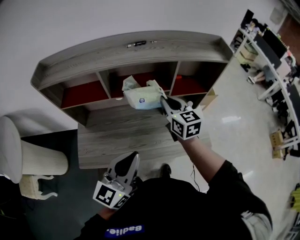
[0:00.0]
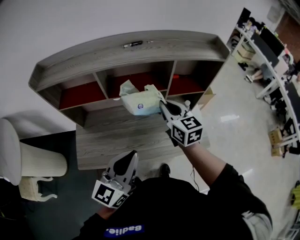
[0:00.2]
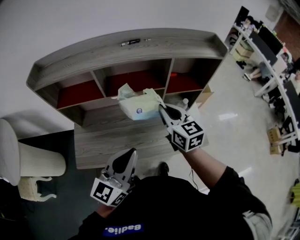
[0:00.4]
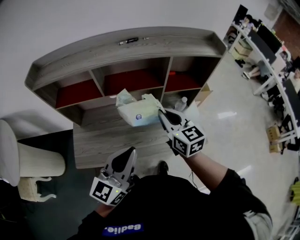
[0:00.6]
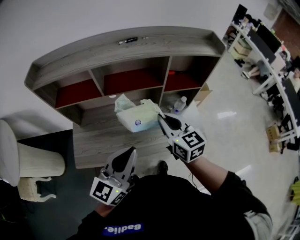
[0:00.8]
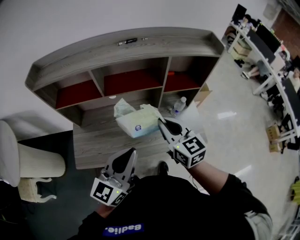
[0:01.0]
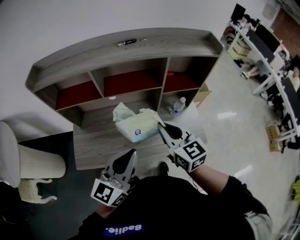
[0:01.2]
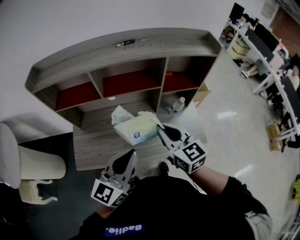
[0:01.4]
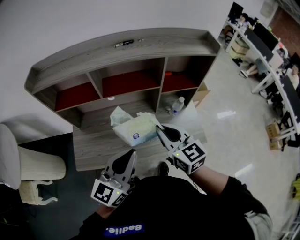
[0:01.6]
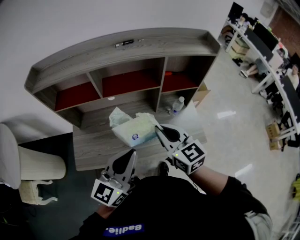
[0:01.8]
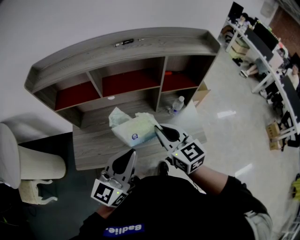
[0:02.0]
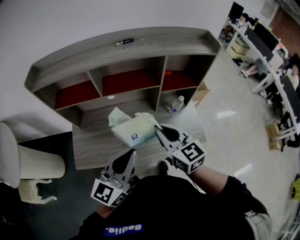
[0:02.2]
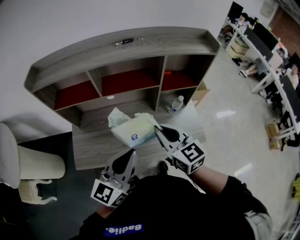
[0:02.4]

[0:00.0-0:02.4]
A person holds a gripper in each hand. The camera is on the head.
0.0 to 1.2 s: The right gripper is displaced backward by about 15 cm.
1.2 to 2.4 s: The grippers make only small movements.

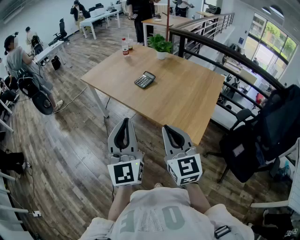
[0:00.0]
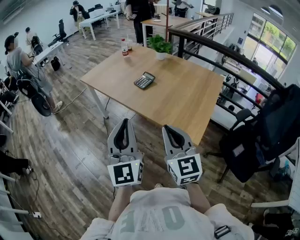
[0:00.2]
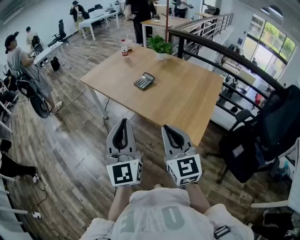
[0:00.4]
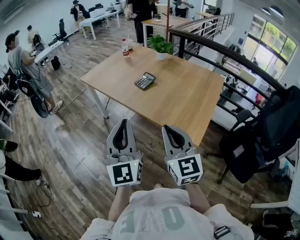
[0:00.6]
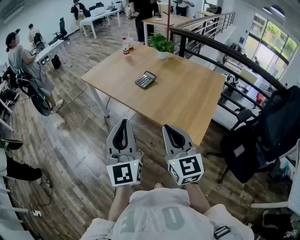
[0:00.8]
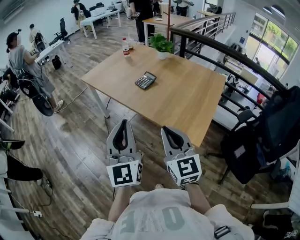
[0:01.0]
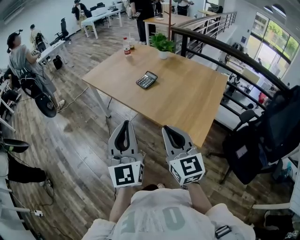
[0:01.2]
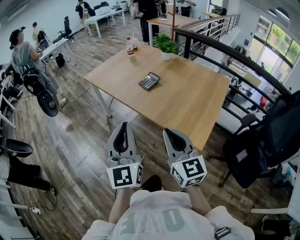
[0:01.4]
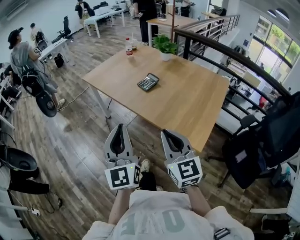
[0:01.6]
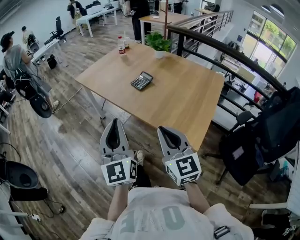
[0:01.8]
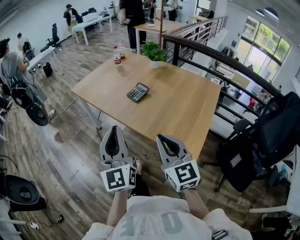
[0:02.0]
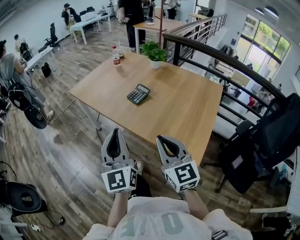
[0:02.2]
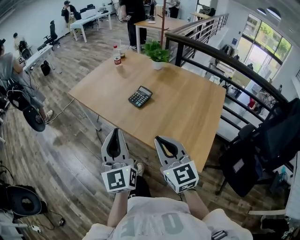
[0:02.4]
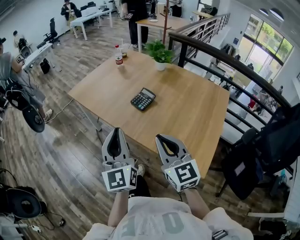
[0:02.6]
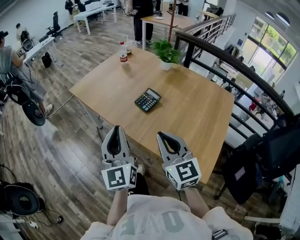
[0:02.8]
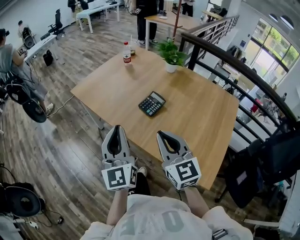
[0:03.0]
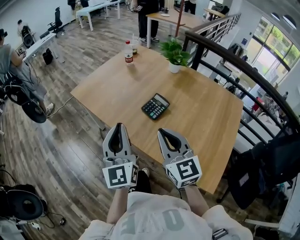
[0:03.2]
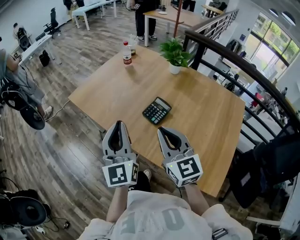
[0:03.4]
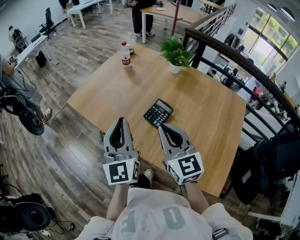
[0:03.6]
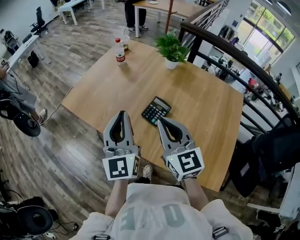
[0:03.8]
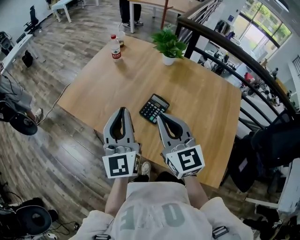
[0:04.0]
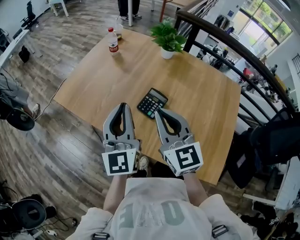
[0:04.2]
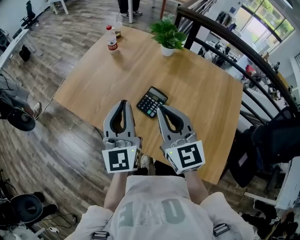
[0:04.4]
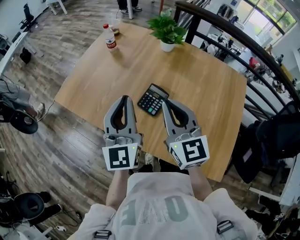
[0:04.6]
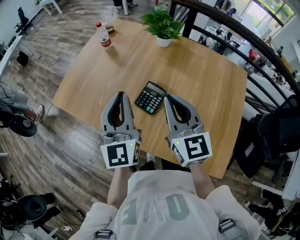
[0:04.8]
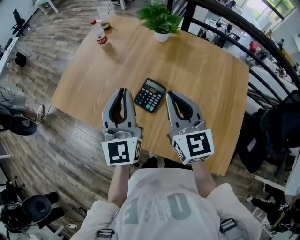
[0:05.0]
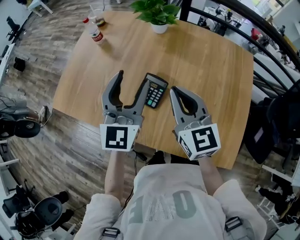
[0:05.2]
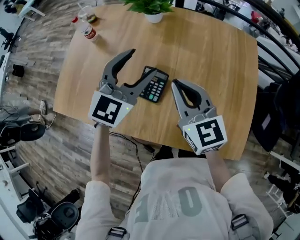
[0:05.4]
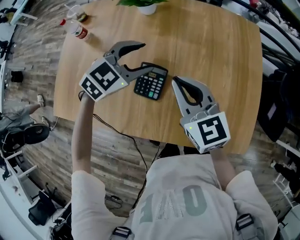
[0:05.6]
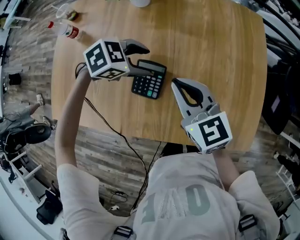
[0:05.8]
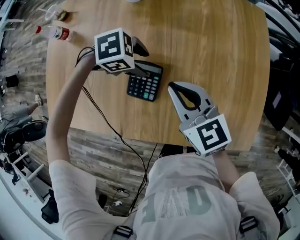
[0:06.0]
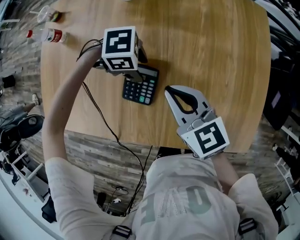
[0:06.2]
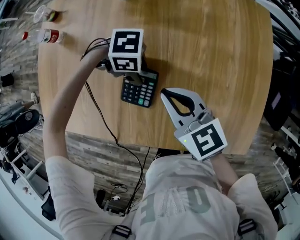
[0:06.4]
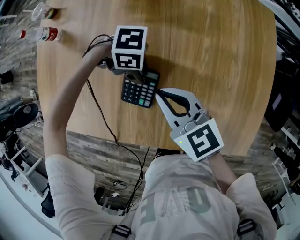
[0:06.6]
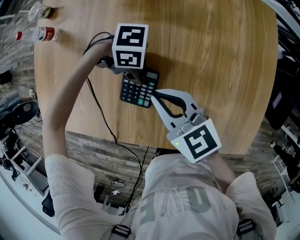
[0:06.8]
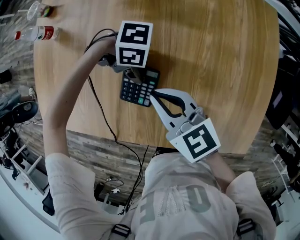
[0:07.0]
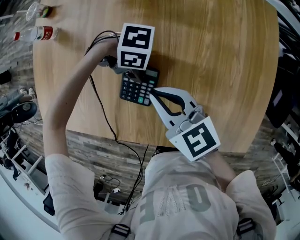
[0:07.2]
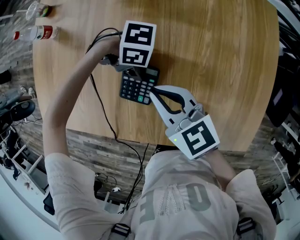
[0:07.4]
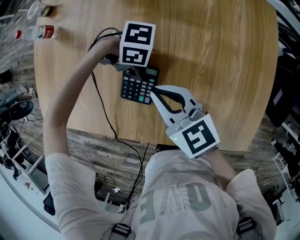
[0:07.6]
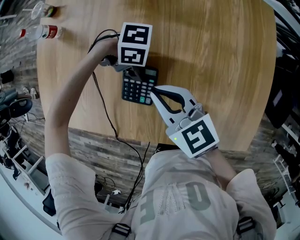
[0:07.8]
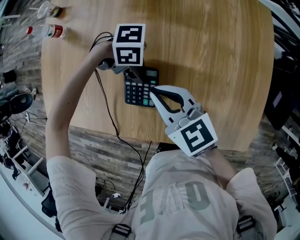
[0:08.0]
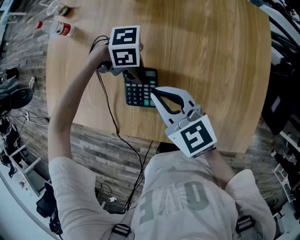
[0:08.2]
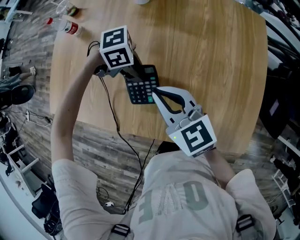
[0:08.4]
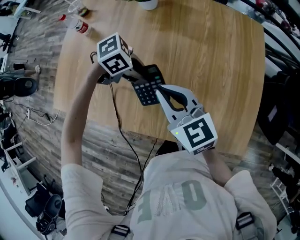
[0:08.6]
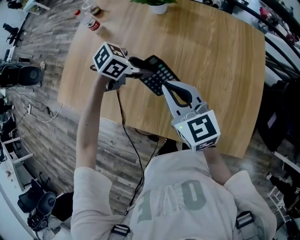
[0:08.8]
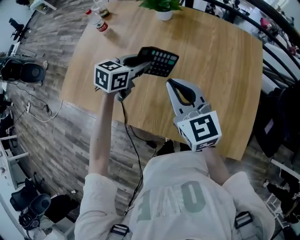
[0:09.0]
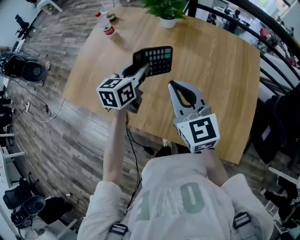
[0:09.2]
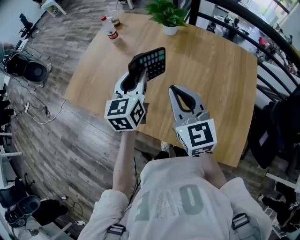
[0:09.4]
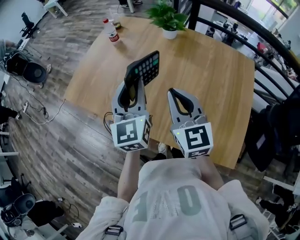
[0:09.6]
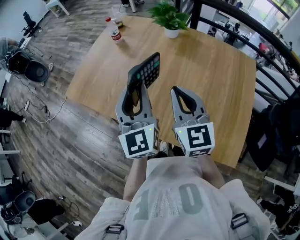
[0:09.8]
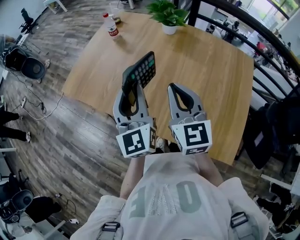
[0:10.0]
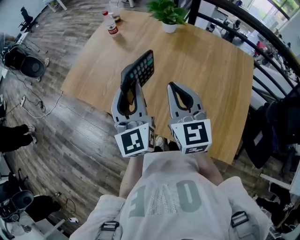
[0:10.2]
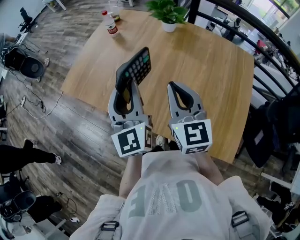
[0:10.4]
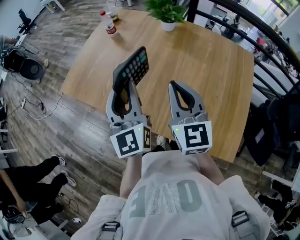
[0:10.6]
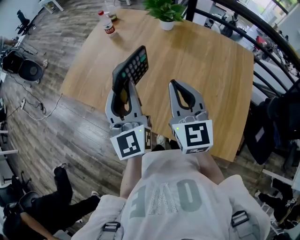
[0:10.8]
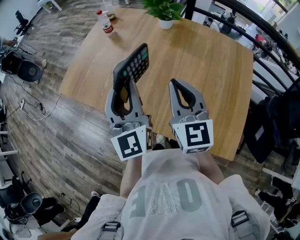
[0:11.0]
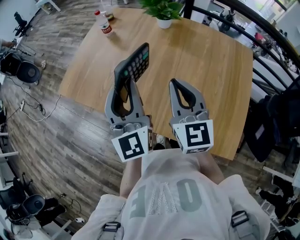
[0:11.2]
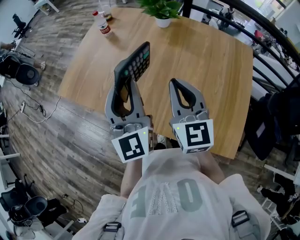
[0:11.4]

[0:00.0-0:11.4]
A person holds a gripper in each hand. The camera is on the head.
0.0 to 1.4 s: The grippers make only small movements.
1.4 to 2.8 s: Both grippers travel together forward, some 20 cm.
2.8 to 4.2 s: The grippers both shift forward by some 20 cm.
4.2 to 5.6 s: The left gripper changes place by about 25 cm, tilts its fingers some 50 degrees downward, and opens up. The right gripper changes place by some 15 cm.
5.6 to 7.2 s: The right gripper goes some 10 cm downward, and turns by about 20 degrees; the left gripper shifts roughly 20 cm downward, changes its angle by approximately 80 degrees, and closes its fingers.
7.2 to 8.6 s: Both grippers move upward, roughly 10 cm. The left gripper rotates some 40 degrees.
8.6 to 10.0 s: The left gripper is displaced upward by about 20 cm, and tilts its fingers some 50 degrees upward. The right gripper moves upward, roughly 10 cm.
10.0 to 11.4 s: The grippers move only a little.

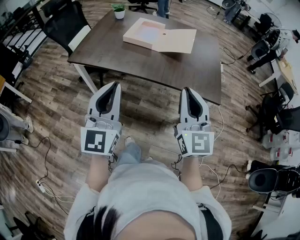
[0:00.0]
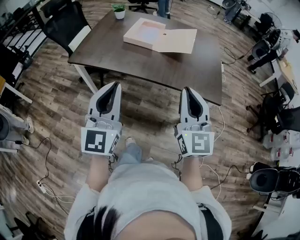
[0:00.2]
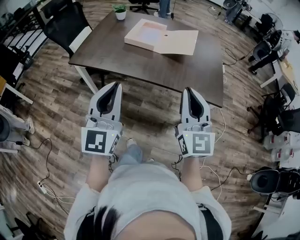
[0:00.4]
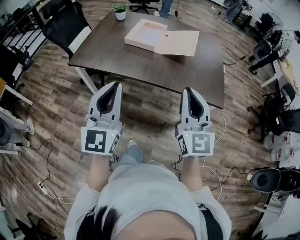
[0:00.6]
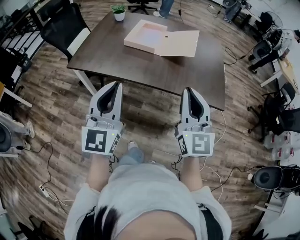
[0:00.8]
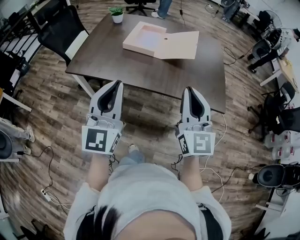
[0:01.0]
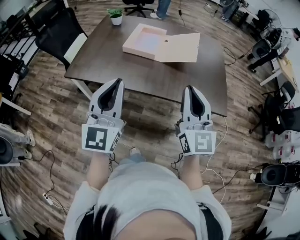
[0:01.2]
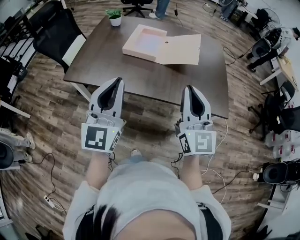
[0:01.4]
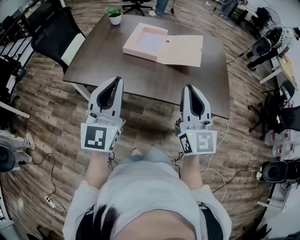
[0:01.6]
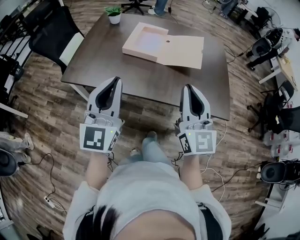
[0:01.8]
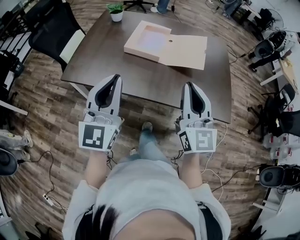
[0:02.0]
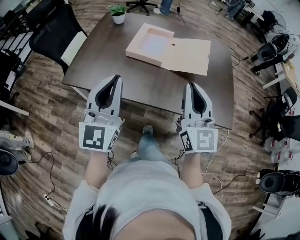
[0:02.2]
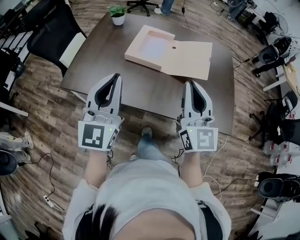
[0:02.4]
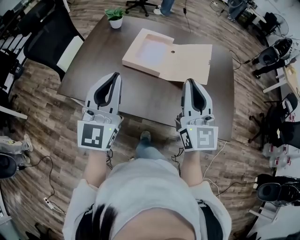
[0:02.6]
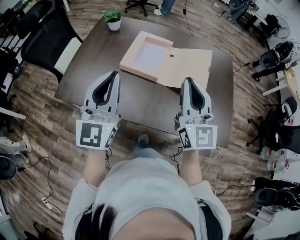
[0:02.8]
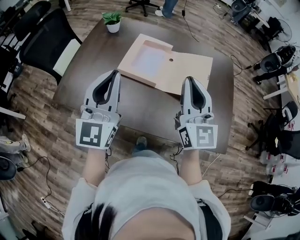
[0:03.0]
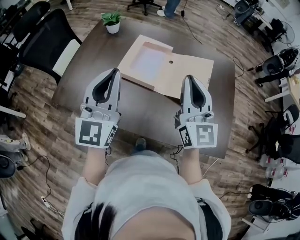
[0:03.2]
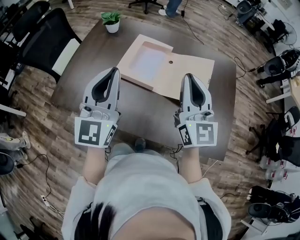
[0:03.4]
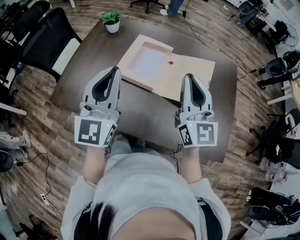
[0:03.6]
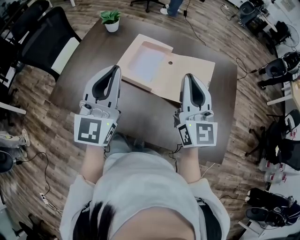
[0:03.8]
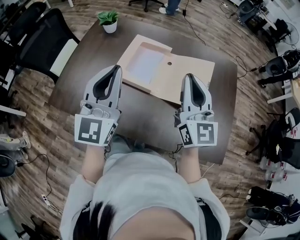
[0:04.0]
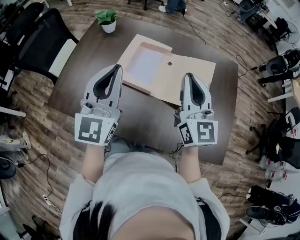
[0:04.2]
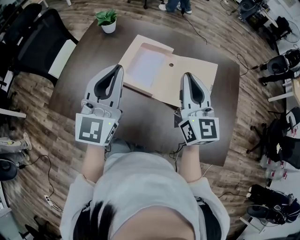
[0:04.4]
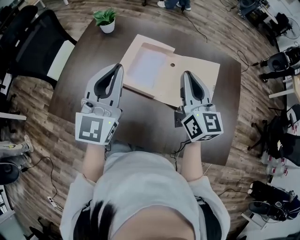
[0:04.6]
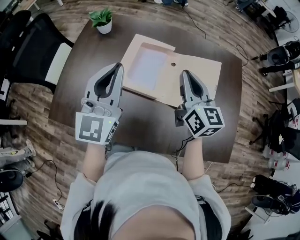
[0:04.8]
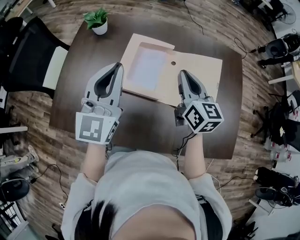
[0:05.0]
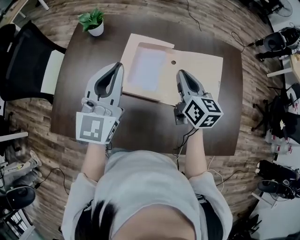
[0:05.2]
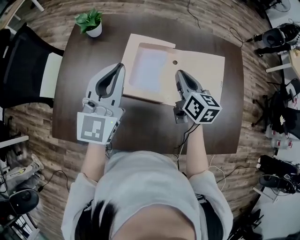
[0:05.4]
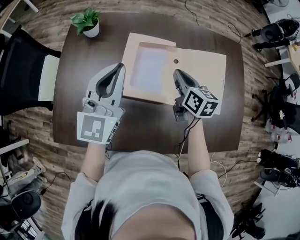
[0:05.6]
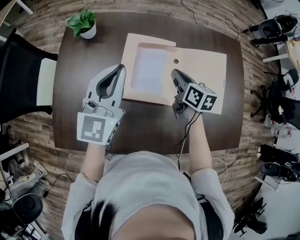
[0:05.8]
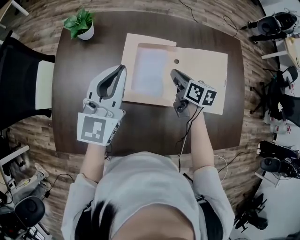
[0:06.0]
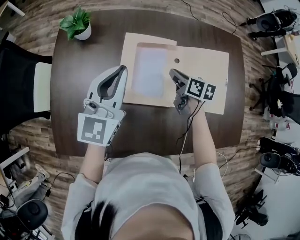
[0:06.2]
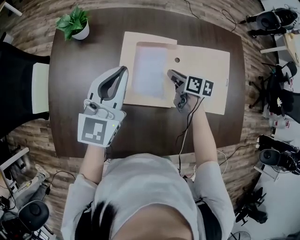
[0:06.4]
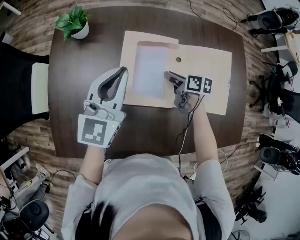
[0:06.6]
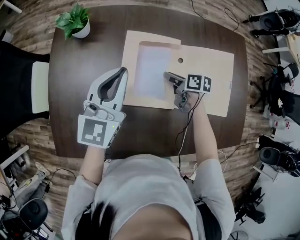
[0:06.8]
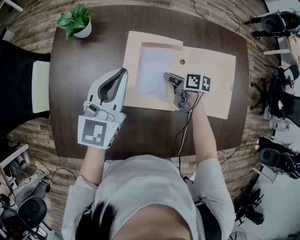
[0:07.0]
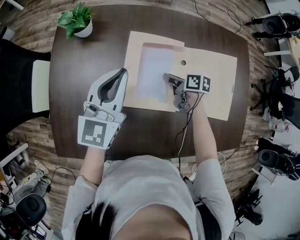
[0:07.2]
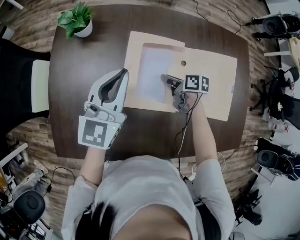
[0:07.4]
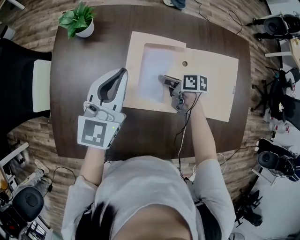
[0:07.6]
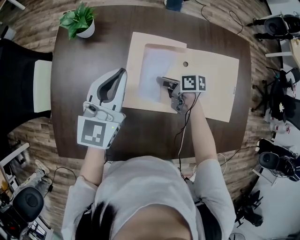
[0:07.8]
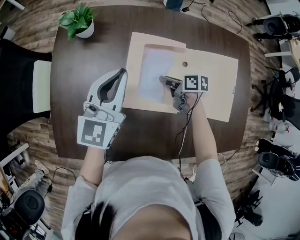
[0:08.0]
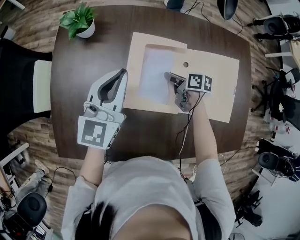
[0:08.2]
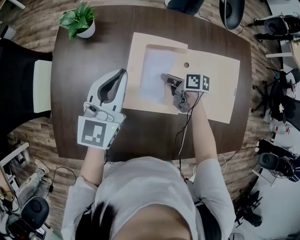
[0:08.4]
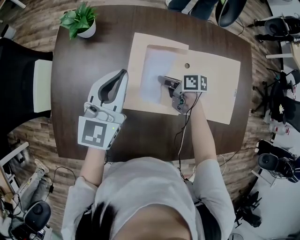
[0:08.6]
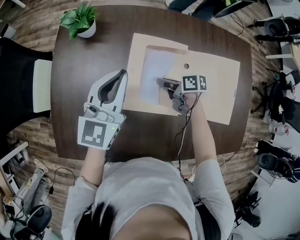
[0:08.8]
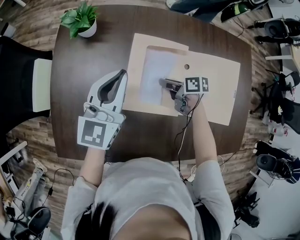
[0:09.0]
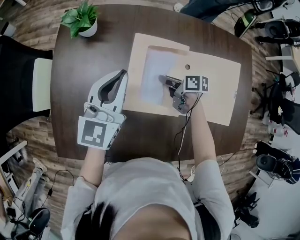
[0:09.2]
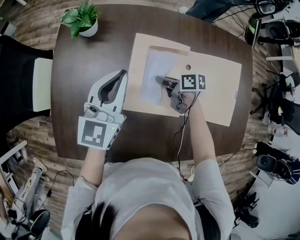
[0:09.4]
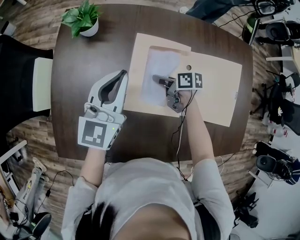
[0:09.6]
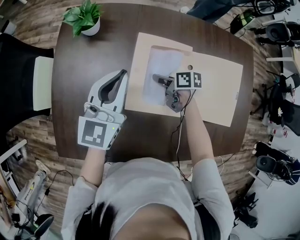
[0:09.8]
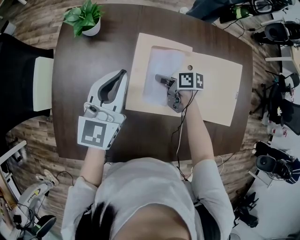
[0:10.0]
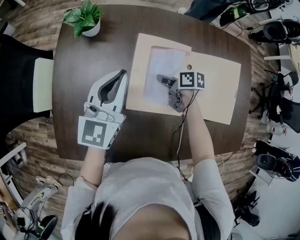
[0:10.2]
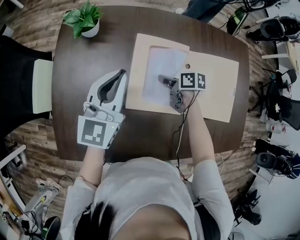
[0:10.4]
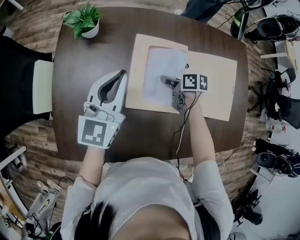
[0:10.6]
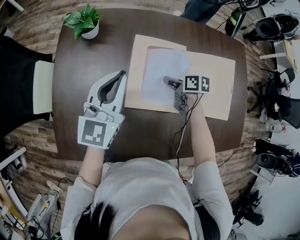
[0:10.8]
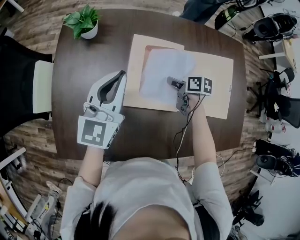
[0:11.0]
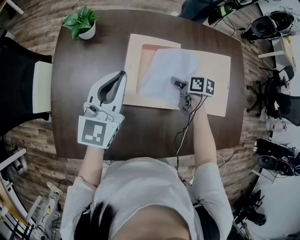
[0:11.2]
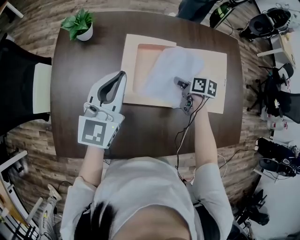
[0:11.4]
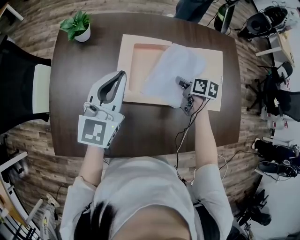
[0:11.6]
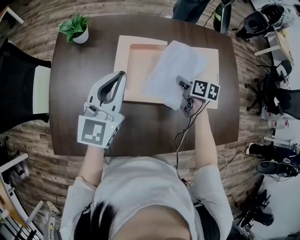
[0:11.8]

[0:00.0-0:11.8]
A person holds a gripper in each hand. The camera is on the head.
0.0 to 1.4 s: The two grippers go some 15 cm forward.
1.4 to 3.0 s: The two grippers go about 25 cm forward.
3.0 to 4.4 s: Both grippers travel together forward, approximately 10 cm.
4.4 to 6.0 s: The left gripper heads forward, downward and to the left, covering roughly 20 cm, and swivels about 20 degrees; the right gripper heads downward and forward, covering approximately 30 cm, and tips its fingers downward by approximately 40 degrees.
6.0 to 7.4 s: The right gripper travels downward by about 10 cm, swivels approximately 30 degrees, and opens up. Meanwhile the left gripper changes place by some 5 cm.
7.4 to 8.8 s: The grippers make only small movements.
8.8 to 10.4 s: The grippers move only a little.
10.4 to 11.8 s: The left gripper travels backward, to the right and upward by roughly 15 cm; the right gripper travels to the right, backward and upward by about 20 cm, and swivels roughly 20 degrees.
